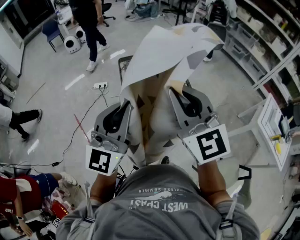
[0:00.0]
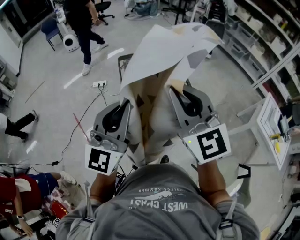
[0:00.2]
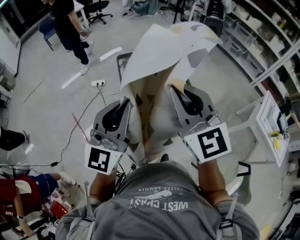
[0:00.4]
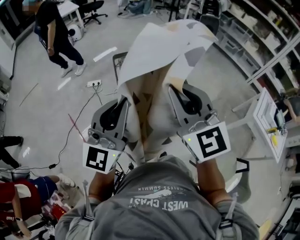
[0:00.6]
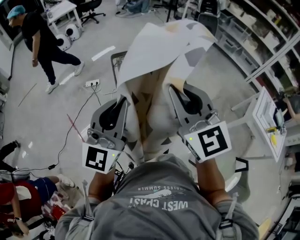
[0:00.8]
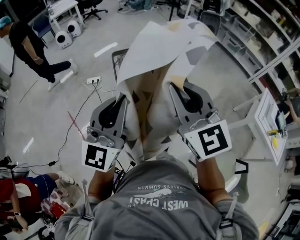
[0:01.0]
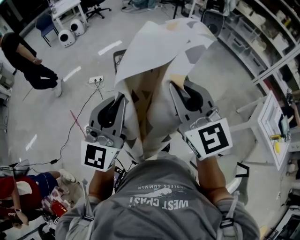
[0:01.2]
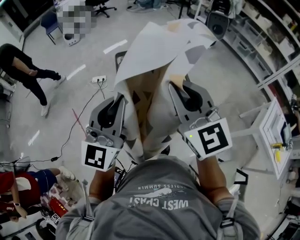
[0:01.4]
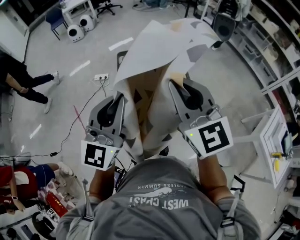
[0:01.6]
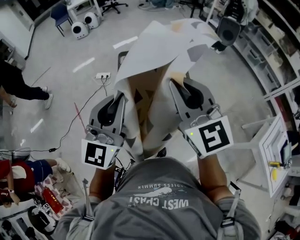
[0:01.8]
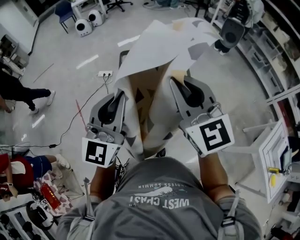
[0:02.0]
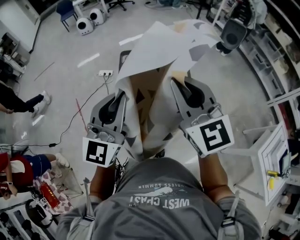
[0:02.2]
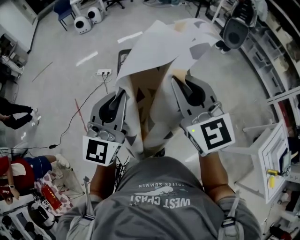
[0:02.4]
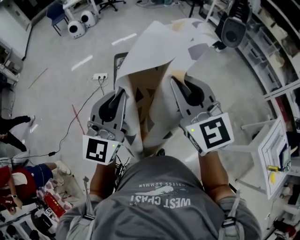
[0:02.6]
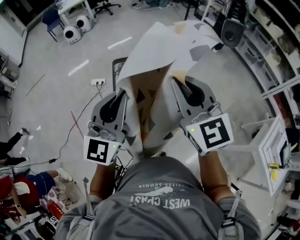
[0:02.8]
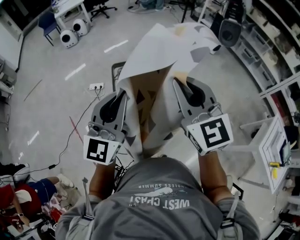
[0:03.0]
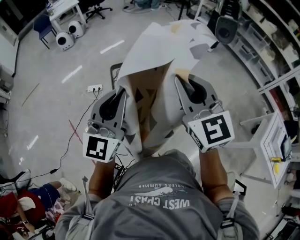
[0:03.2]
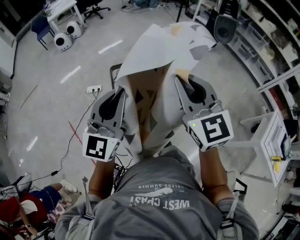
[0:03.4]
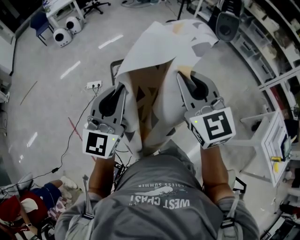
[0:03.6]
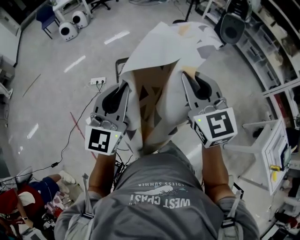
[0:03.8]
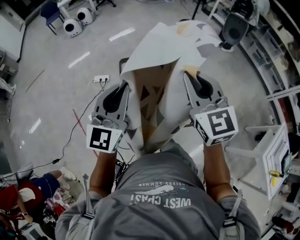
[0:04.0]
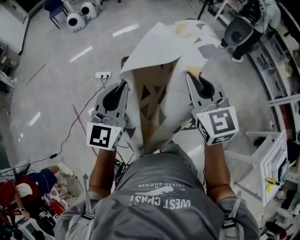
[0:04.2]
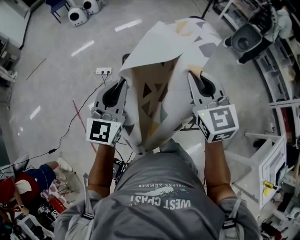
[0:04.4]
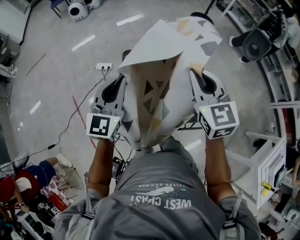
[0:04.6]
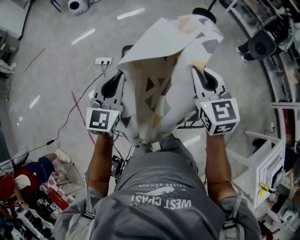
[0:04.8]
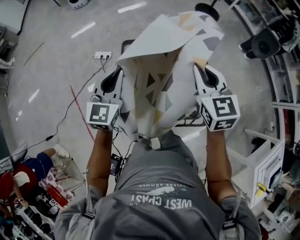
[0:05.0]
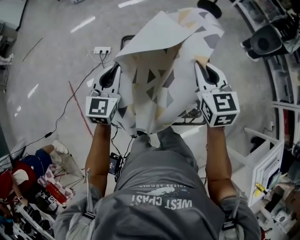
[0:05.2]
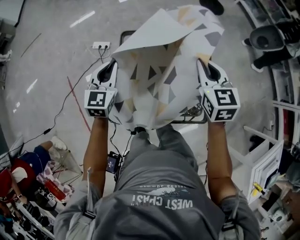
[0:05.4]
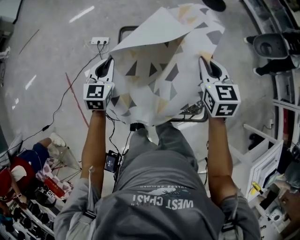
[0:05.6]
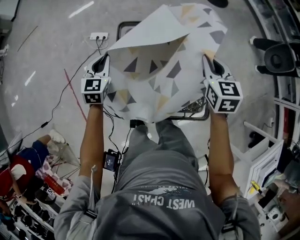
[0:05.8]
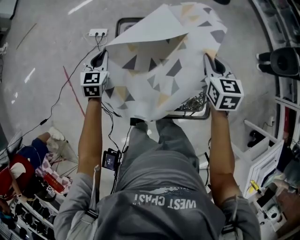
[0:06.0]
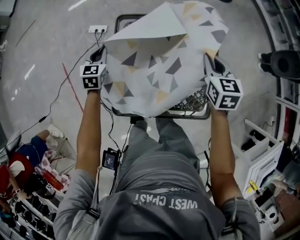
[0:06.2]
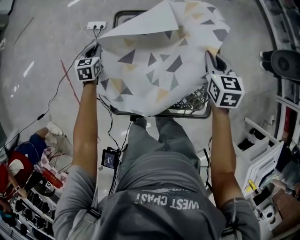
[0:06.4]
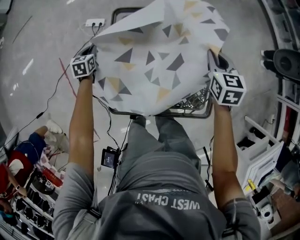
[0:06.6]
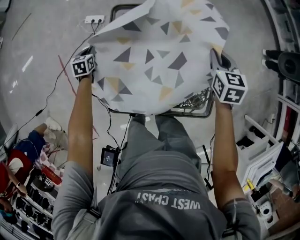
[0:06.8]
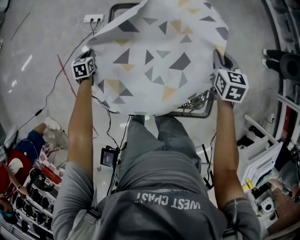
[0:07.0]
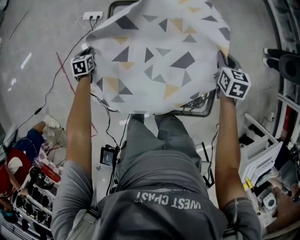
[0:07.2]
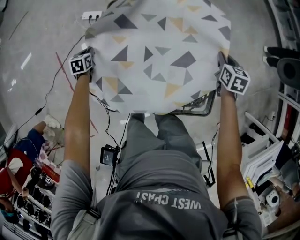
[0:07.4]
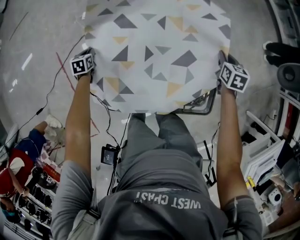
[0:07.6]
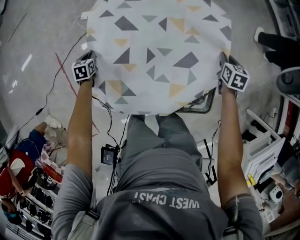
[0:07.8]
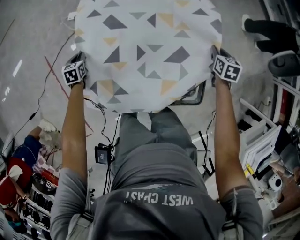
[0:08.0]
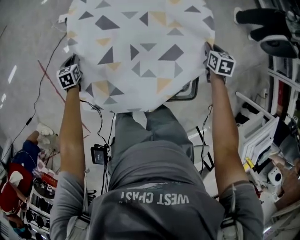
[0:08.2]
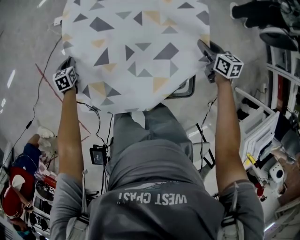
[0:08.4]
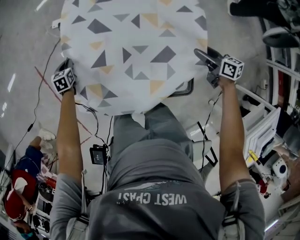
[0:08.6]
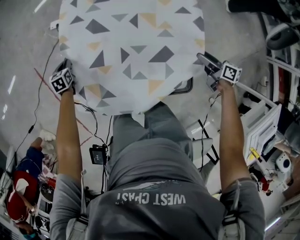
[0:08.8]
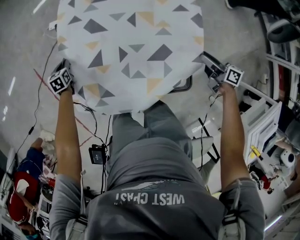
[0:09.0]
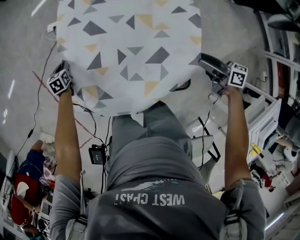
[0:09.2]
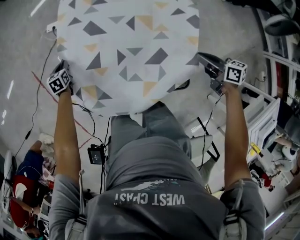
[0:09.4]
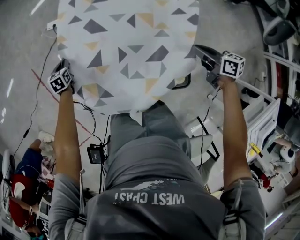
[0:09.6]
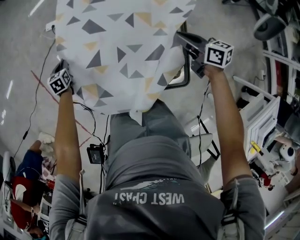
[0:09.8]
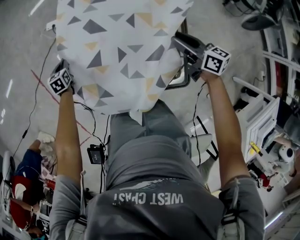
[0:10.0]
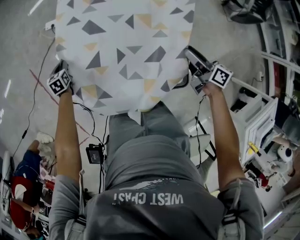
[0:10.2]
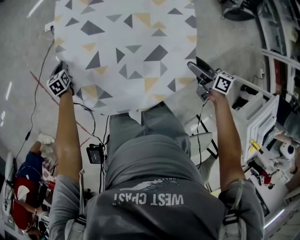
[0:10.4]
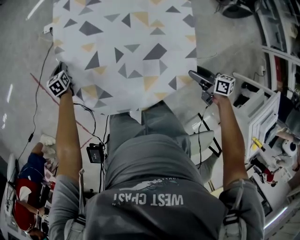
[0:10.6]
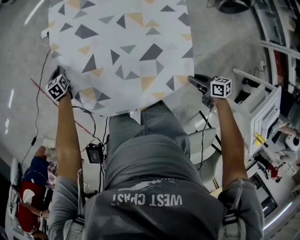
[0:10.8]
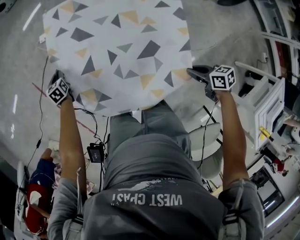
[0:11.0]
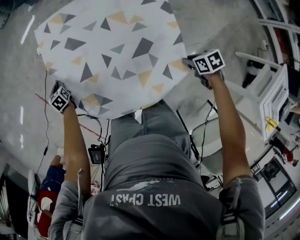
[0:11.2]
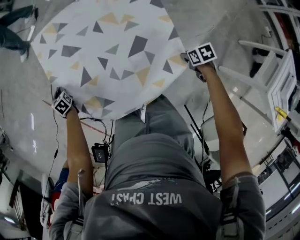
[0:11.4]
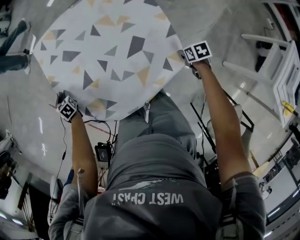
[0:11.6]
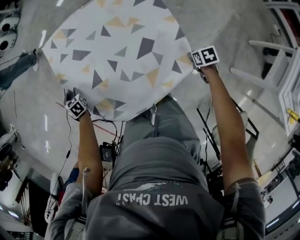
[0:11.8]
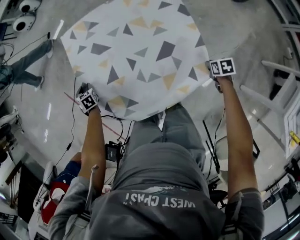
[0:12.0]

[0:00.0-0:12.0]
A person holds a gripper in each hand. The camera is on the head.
0:00.0 to 0:01.6: The two grippers go some 15 cm forward and to the right.
0:01.6 to 0:03.0: The two grippers go about 15 cm forward.
0:03.0 to 0:04.4: The left gripper travels forward, downward and to the left by approximately 20 cm, while the right gripper travels forward and downward by some 20 cm.
0:04.4 to 0:06.0: Both grippers move downward and forward, some 30 cm. The right gripper changes its angle by approximately 30 degrees. Meanwhile the left gripper tilts its fingers about 30 degrees downward.
0:06.0 to 0:07.6: The right gripper moves downward and to the right, roughly 25 cm, while the left gripper heads downward, covering some 25 cm, and rotates approximately 30 degrees.
0:07.6 to 0:09.0: The right gripper is displaced backward by about 15 cm, turns by approximately 50 degrees, and opens up.
0:09.0 to 0:10.4: The right gripper travels to the left by roughly 5 cm, travels forward and back again, some 10 cm each way, and closes, then opens again.
0:10.4 to 0:12.0: The left gripper rotates some 20 degrees, and opens; the right gripper is displaced downward and backward by about 20 cm, points its fingers roughly 50 degrees further downward, and closes up.

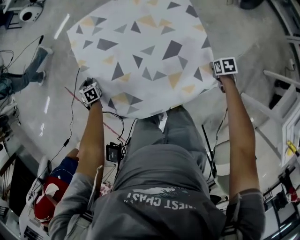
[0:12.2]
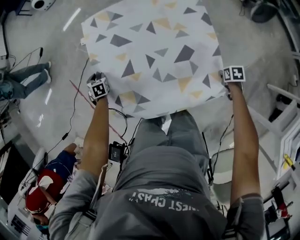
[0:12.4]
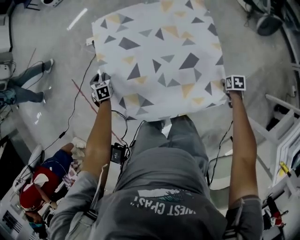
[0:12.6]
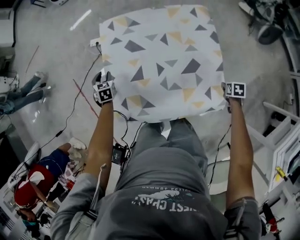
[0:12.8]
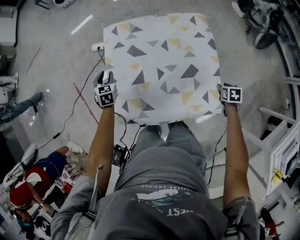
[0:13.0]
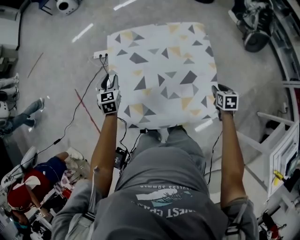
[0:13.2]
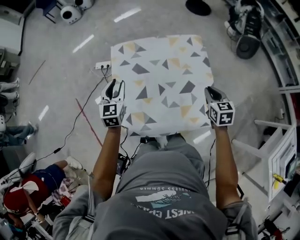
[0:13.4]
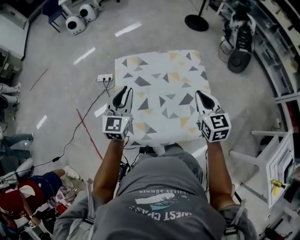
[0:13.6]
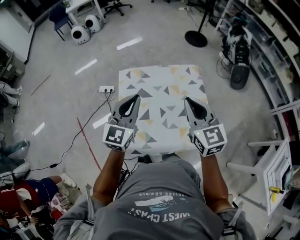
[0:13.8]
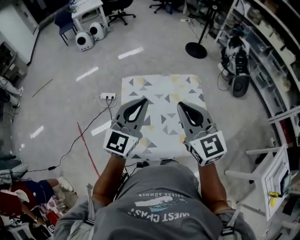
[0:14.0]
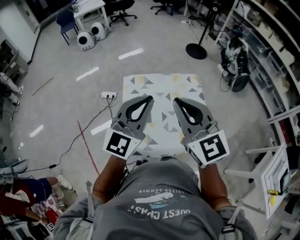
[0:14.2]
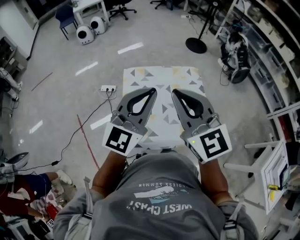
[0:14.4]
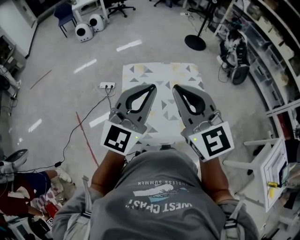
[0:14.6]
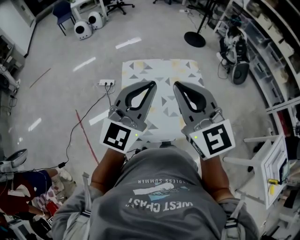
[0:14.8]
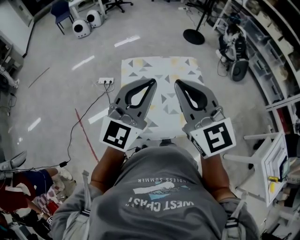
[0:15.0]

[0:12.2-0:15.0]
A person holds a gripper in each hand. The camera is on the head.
0:12.2 to 0:13.6: The grippers both shift upward by approximately 40 cm. The right gripper angles its fingers upward, by about 50 degrees, and opens, then closes again; the left gripper tips its fingers upward by about 50 degrees.
0:13.6 to 0:15.0: The right gripper heads upward, to the left and backward, covering roughly 30 cm, and turns by approximately 30 degrees. The left gripper travels upward and backward by some 25 cm, and turns by about 30 degrees.

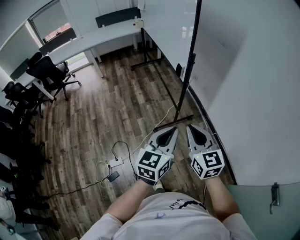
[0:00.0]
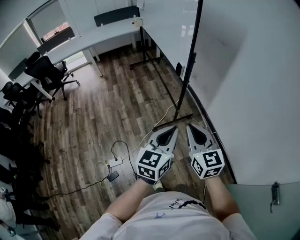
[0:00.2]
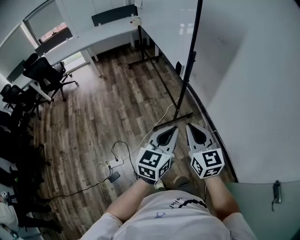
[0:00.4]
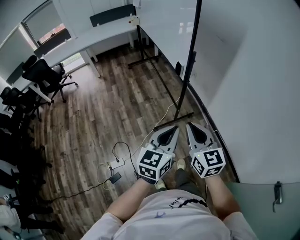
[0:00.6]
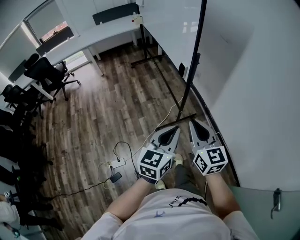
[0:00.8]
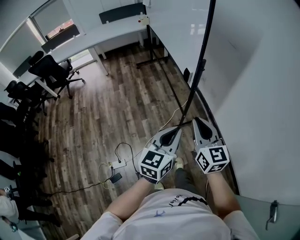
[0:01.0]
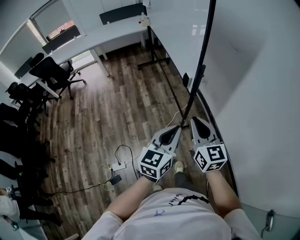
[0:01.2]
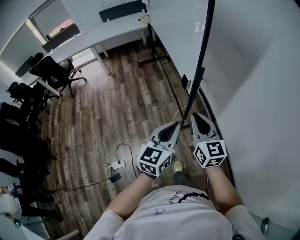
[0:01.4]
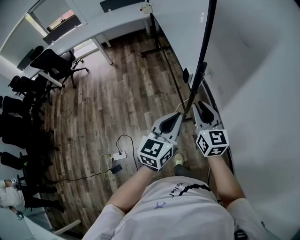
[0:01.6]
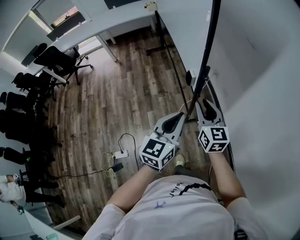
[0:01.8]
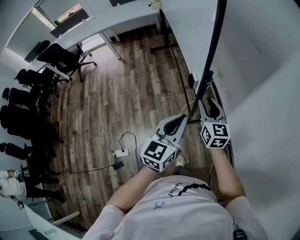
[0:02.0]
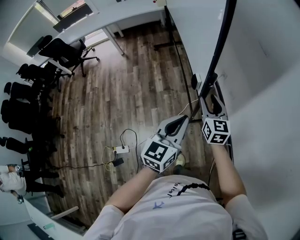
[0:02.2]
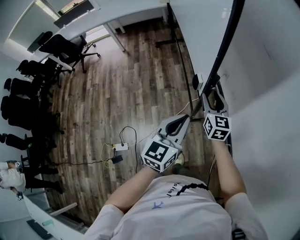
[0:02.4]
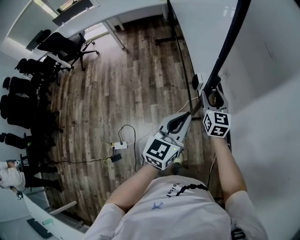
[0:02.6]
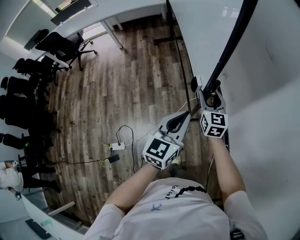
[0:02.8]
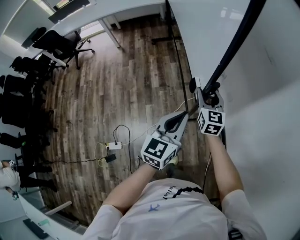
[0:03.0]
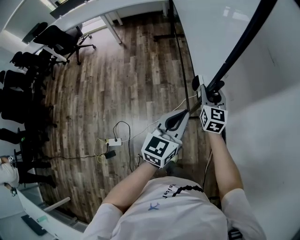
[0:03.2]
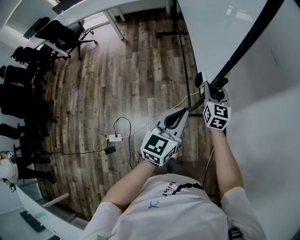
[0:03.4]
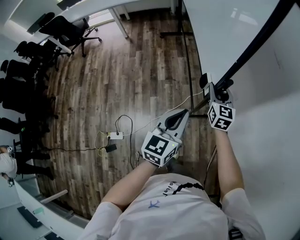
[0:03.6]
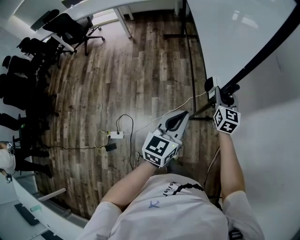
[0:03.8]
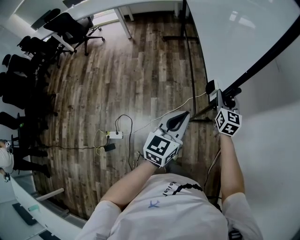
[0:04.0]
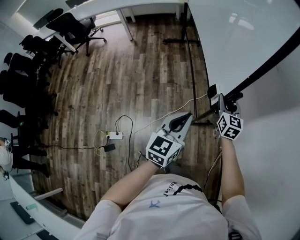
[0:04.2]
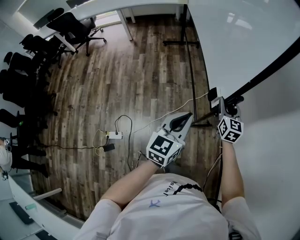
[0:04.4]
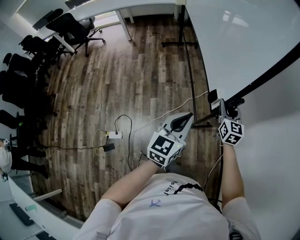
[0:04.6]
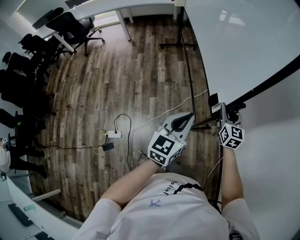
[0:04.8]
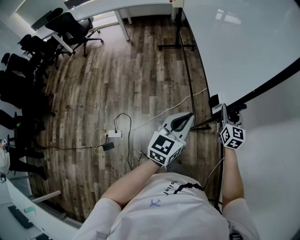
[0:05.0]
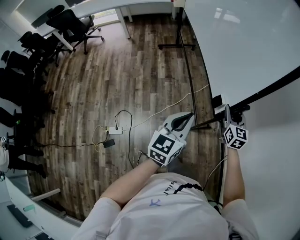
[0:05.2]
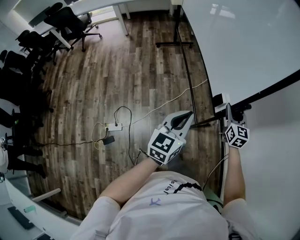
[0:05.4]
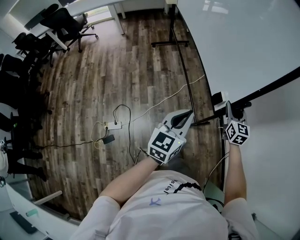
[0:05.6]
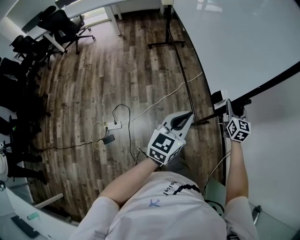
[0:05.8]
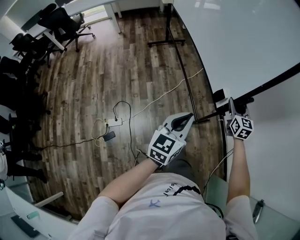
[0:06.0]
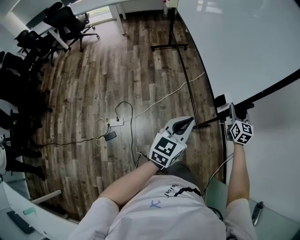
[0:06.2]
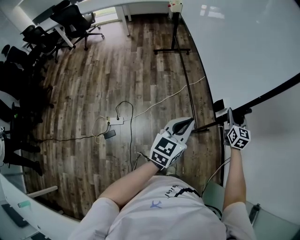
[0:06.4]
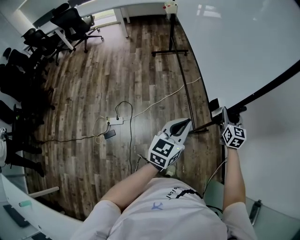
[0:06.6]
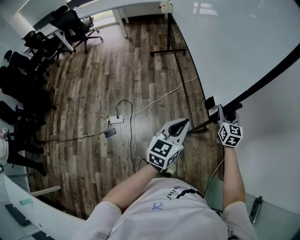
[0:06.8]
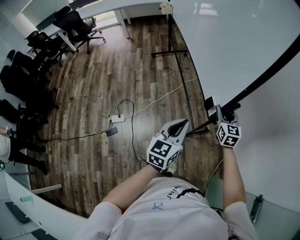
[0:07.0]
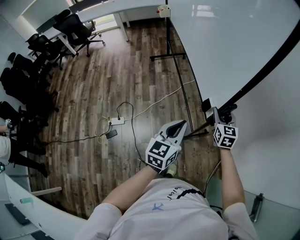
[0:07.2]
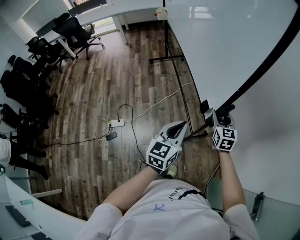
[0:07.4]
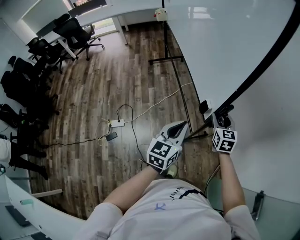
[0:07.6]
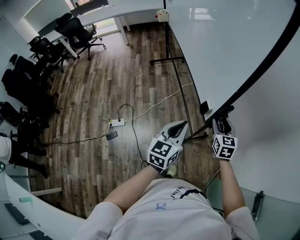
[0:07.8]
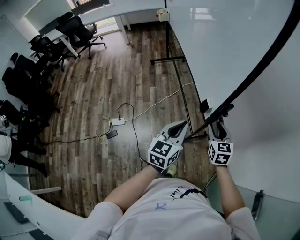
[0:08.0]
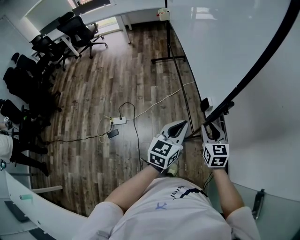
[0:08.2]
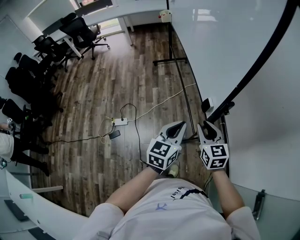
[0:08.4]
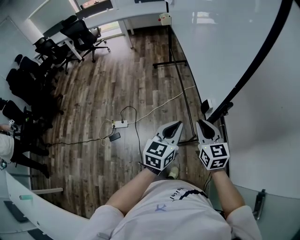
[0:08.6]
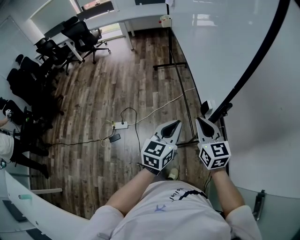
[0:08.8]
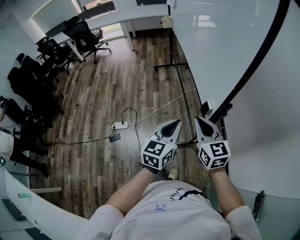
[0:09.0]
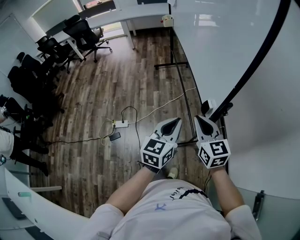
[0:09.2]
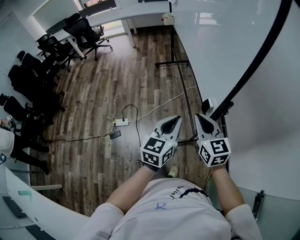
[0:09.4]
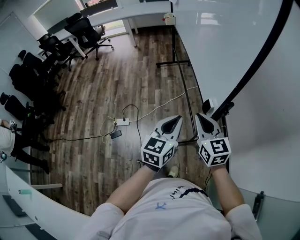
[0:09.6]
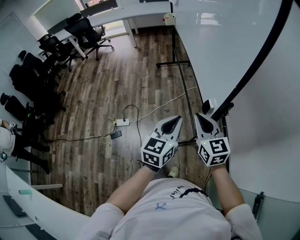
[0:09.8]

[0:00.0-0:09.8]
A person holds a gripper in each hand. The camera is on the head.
0:00.0 to 0:01.4: Both grippers travel together forward, some 20 cm.
0:01.4 to 0:02.8: The left gripper heads forward, covering some 15 cm, while the right gripper moves forward and downward, about 30 cm, and opens its fingers.
0:02.8 to 0:04.2: The right gripper ends up roughly 5 cm from where it was, while the left gripper goes approximately 5 cm backward.
0:04.2 to 0:05.6: The grippers both shift backward by about 20 cm.
0:05.6 to 0:07.0: The right gripper is displaced backward by some 20 cm, while the left gripper travels backward and to the right by some 20 cm.
0:07.0 to 0:08.4: The left gripper moves roughly 5 cm, while the right gripper is displaced backward and to the left by some 20 cm.
0:08.4 to 0:09.8: The right gripper heads upward, covering some 5 cm, and closes up.
